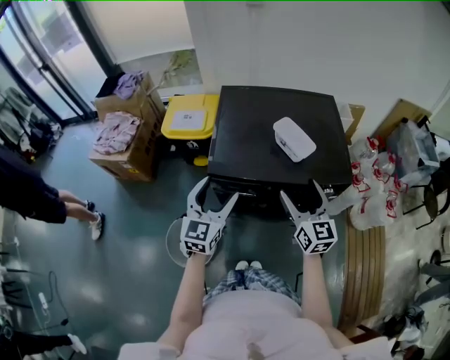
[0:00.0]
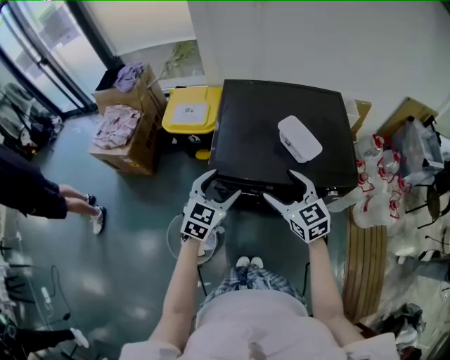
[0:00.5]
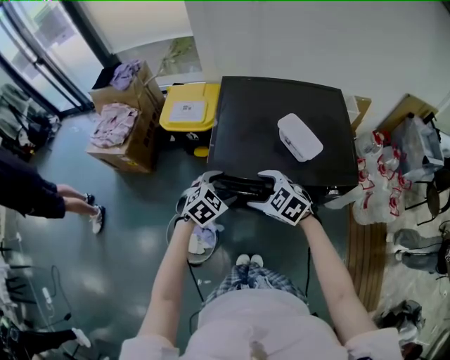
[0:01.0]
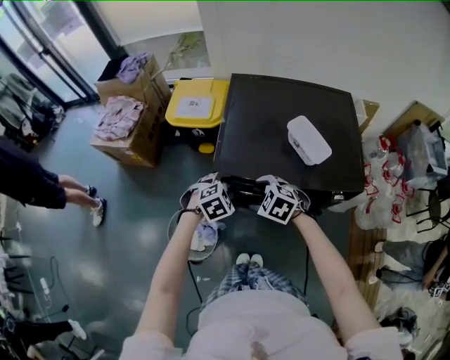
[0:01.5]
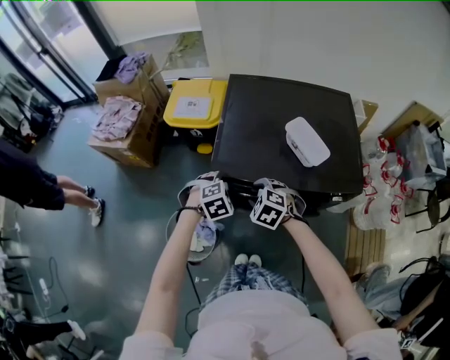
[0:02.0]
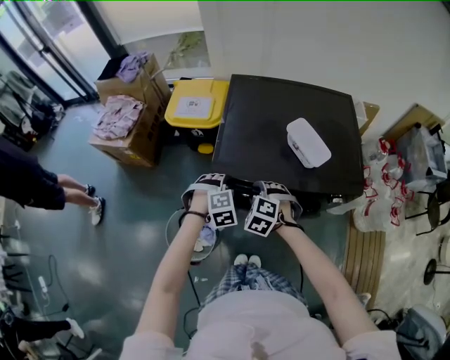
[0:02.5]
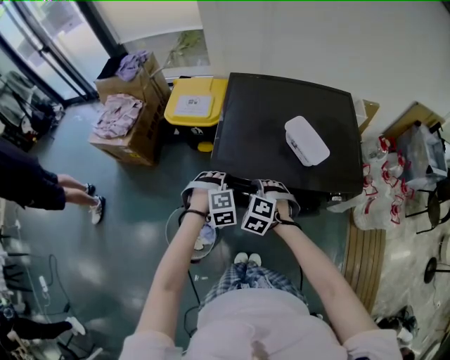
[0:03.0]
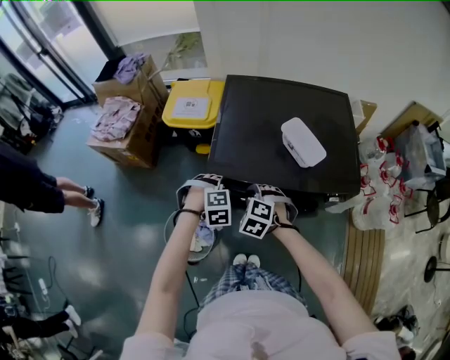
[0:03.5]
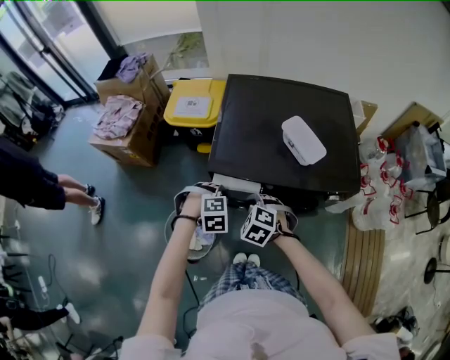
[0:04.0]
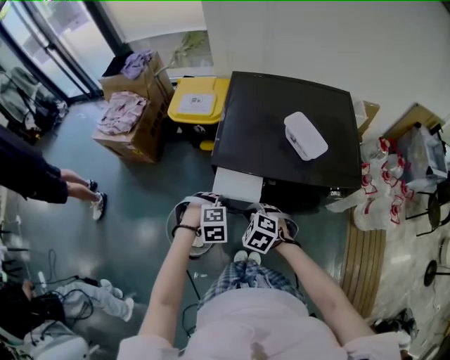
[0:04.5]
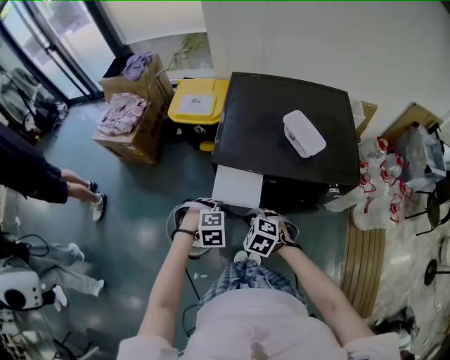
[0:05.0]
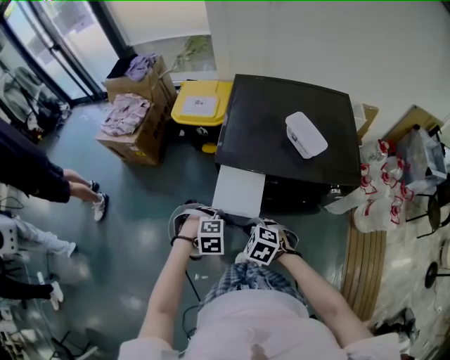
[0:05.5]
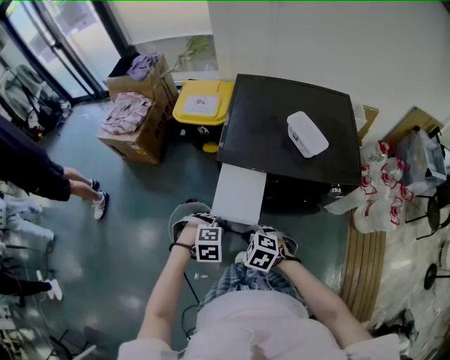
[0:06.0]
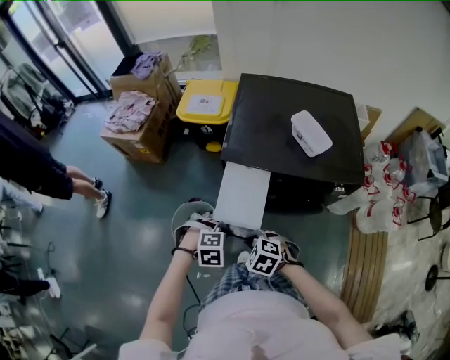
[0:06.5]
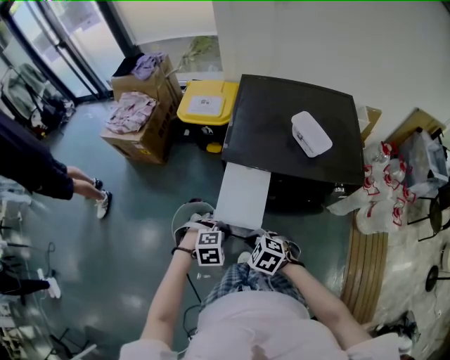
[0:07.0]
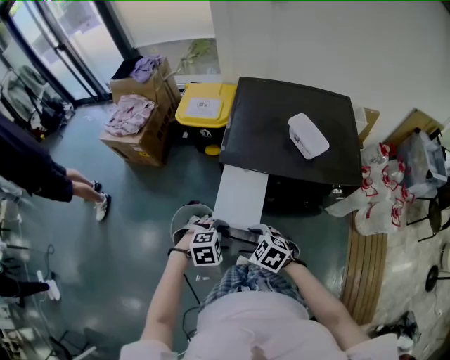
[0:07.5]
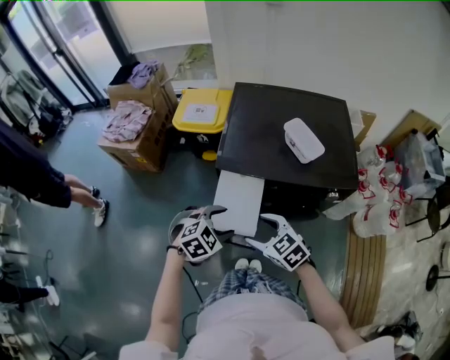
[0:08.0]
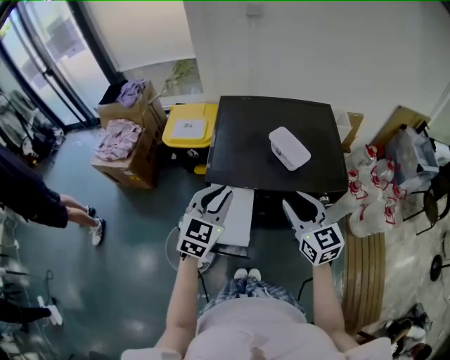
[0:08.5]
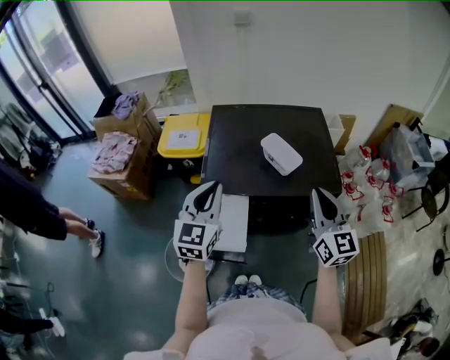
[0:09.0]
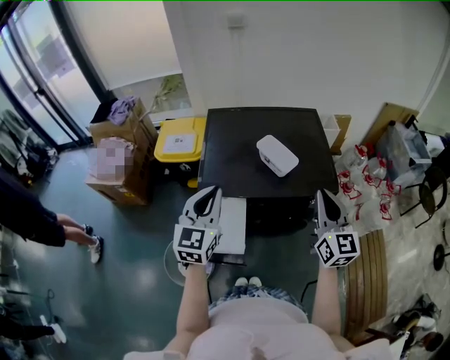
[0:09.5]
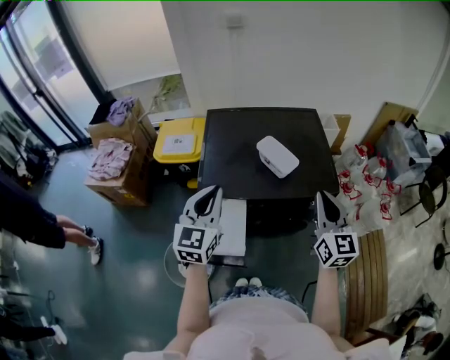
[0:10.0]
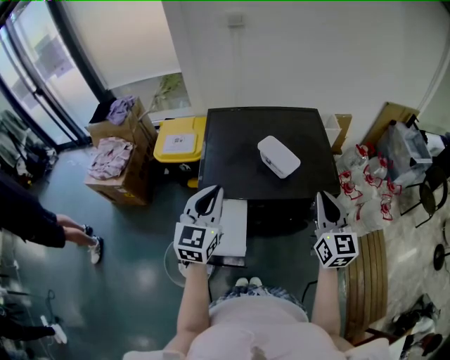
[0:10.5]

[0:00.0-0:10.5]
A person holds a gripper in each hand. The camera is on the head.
0:00.0 to 0:02.0: The left gripper heads downward, covering approximately 15 cm, angles its fingers downward, by roughly 60 degrees, and closes. The right gripper is displaced downward and to the left by approximately 20 cm, tips its fingers downward by about 60 degrees, and closes.
0:02.0 to 0:04.0: The left gripper travels backward by approximately 5 cm, and closes its fingers.
0:04.0 to 0:06.5: The left gripper moves some 20 cm, while the right gripper changes place by about 20 cm.
0:06.5 to 0:08.5: The left gripper goes approximately 25 cm upward, angles its fingers upward, by roughly 60 degrees, and opens and closes again. Meanwhile the right gripper ends up approximately 30 cm from where it was, tips its fingers upward by approximately 50 degrees, and opens and closes again.
0:08.5 to 0:10.5: The left gripper changes place by some 5 cm; the right gripper is displaced to the right by some 10 cm, and swivels about 20 degrees.

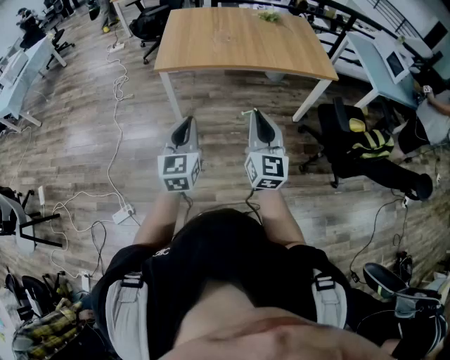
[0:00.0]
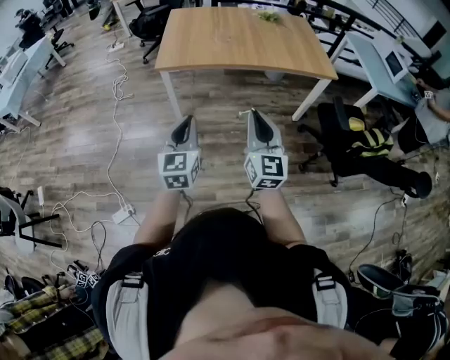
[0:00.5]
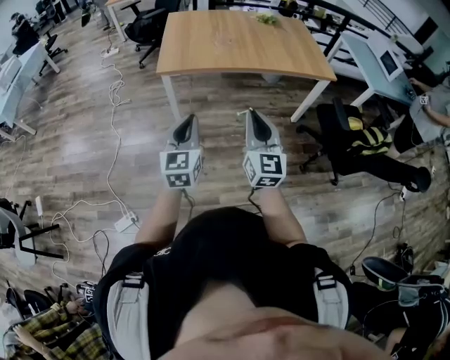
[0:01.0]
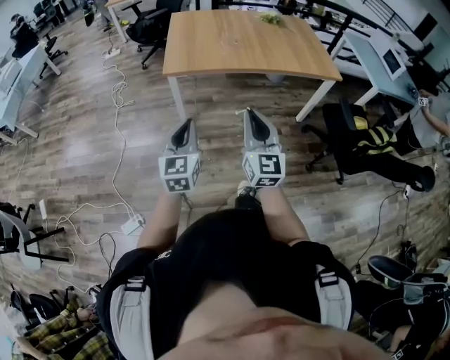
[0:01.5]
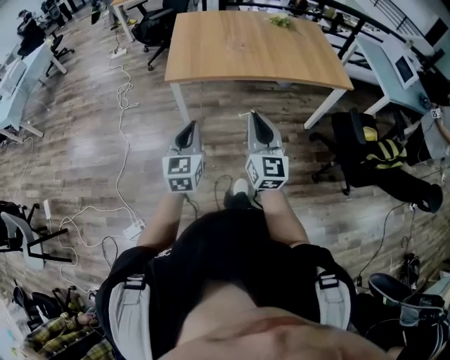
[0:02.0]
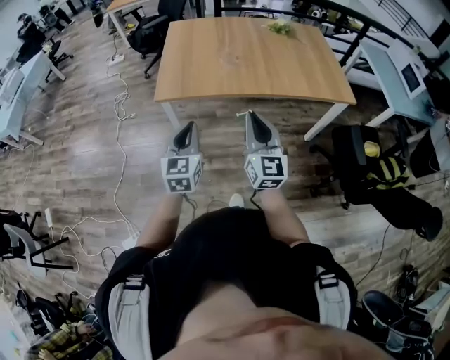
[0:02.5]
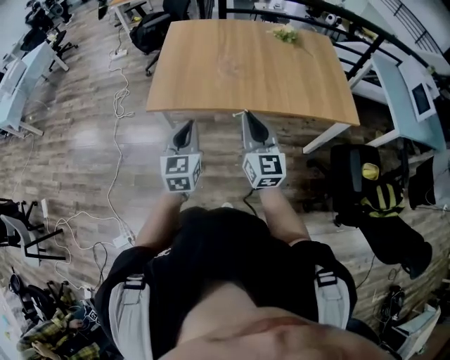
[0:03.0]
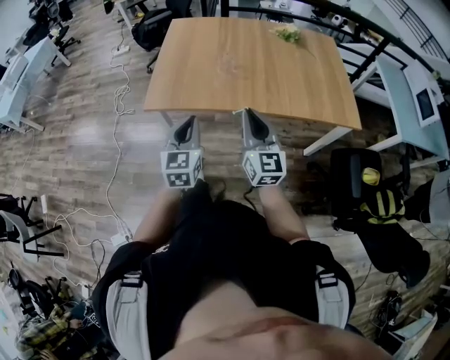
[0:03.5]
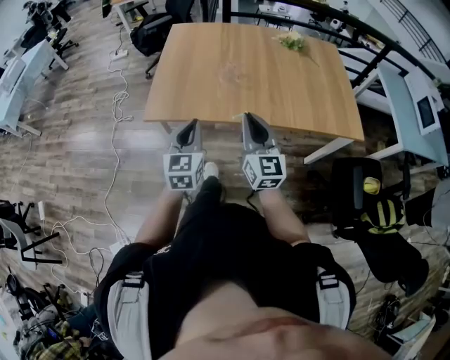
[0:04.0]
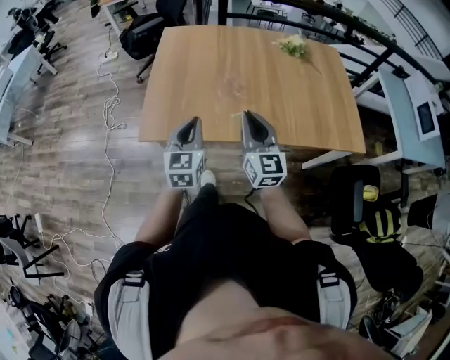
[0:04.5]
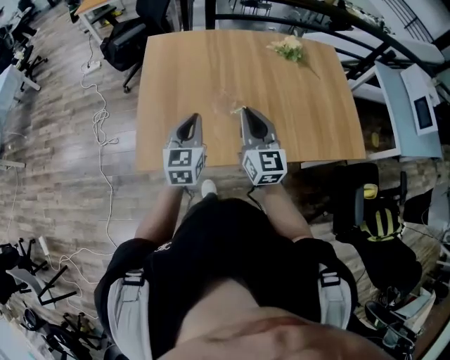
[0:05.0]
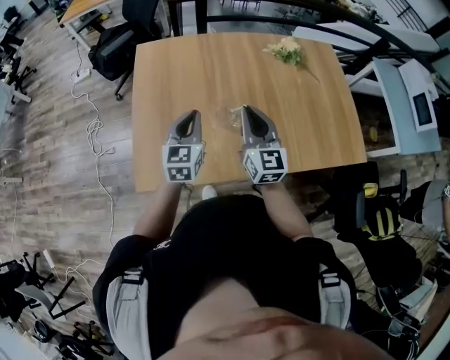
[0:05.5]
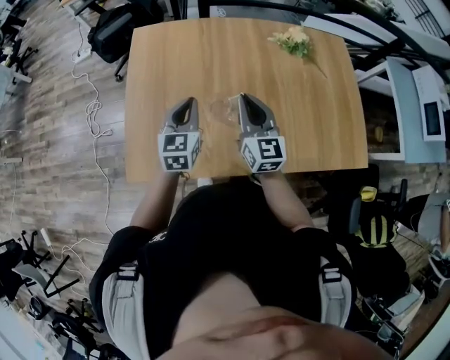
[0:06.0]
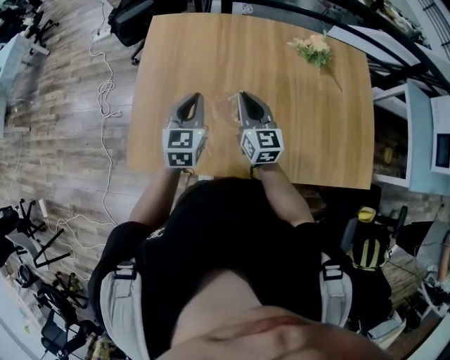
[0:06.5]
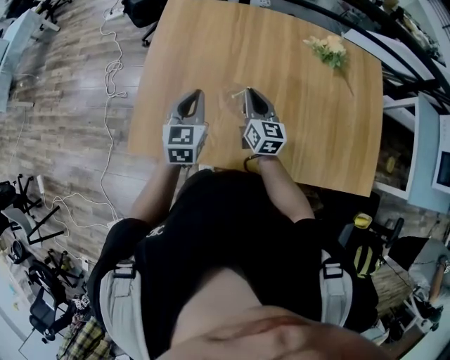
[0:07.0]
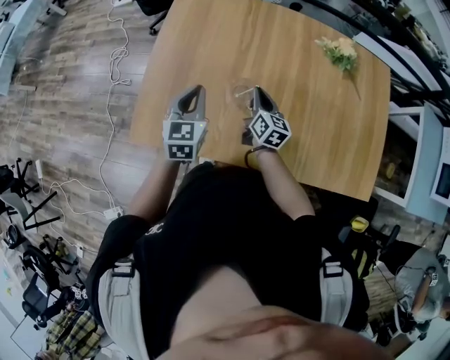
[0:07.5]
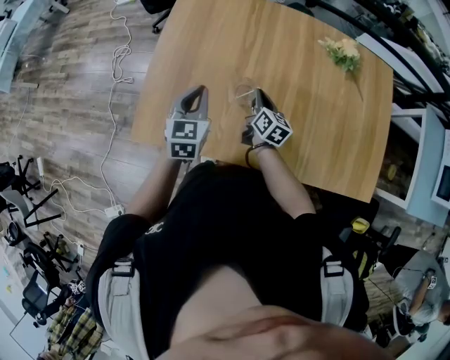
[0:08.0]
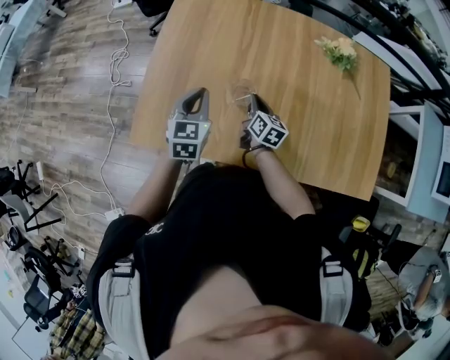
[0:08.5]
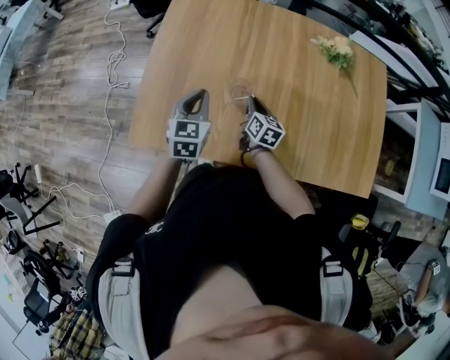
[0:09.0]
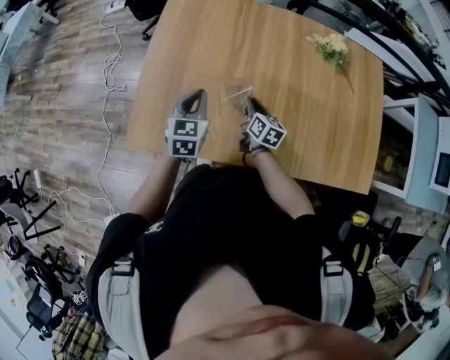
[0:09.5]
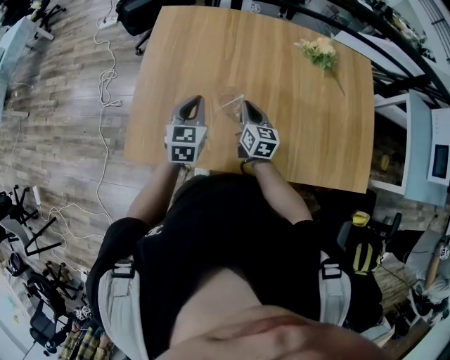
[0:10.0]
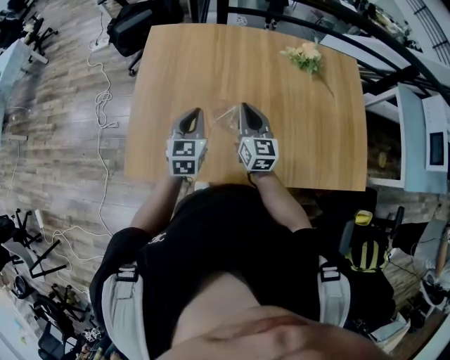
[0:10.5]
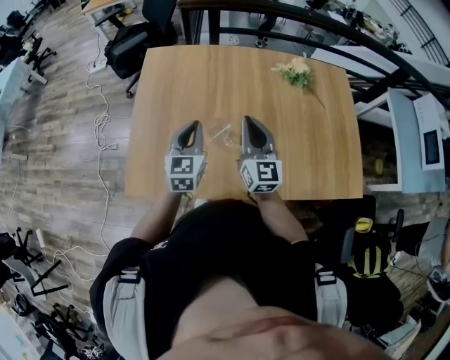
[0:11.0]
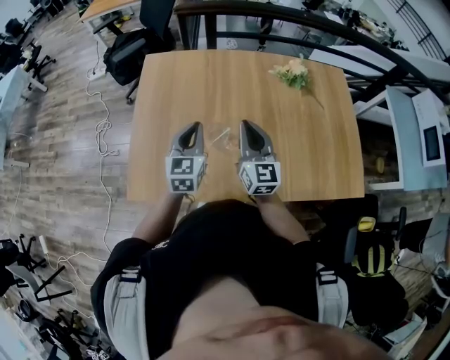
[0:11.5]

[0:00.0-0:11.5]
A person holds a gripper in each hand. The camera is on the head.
0:00.0 to 0:02.0: Both grippers move forward and to the left, approximately 15 cm.
0:02.0 to 0:04.0: The left gripper shifts some 35 cm forward and to the right; the right gripper moves forward, roughly 30 cm.
0:04.0 to 0:06.0: The two grippers go about 40 cm forward.
0:06.0 to 0:07.5: The right gripper goes approximately 15 cm downward, and turns by approximately 30 degrees, while the left gripper moves approximately 5 cm.
0:07.5 to 0:09.5: The right gripper heads downward, covering some 5 cm.
0:09.5 to 0:11.5: The right gripper heads upward, covering approximately 25 cm, and changes its angle by about 40 degrees; the left gripper is displaced upward by about 10 cm.

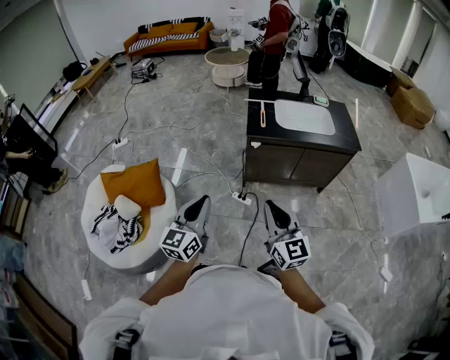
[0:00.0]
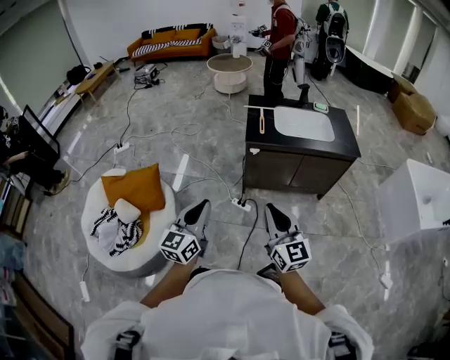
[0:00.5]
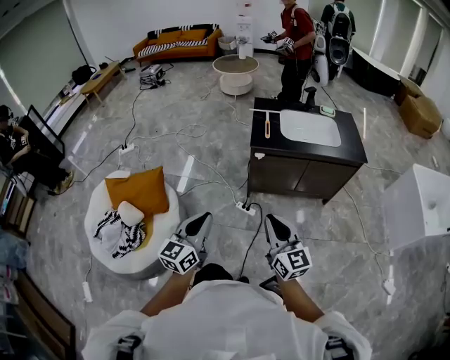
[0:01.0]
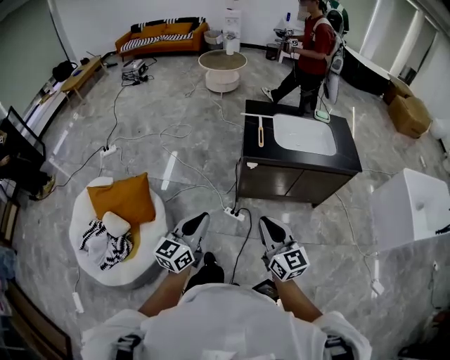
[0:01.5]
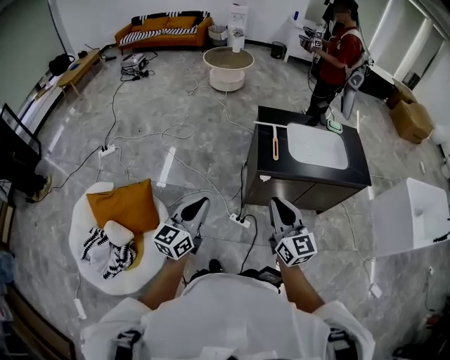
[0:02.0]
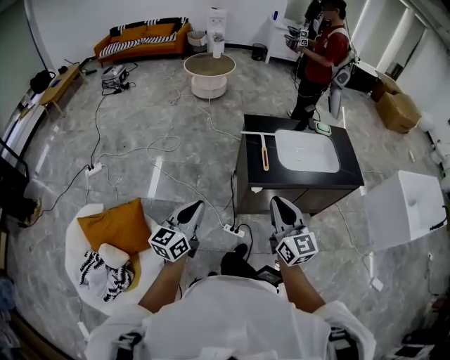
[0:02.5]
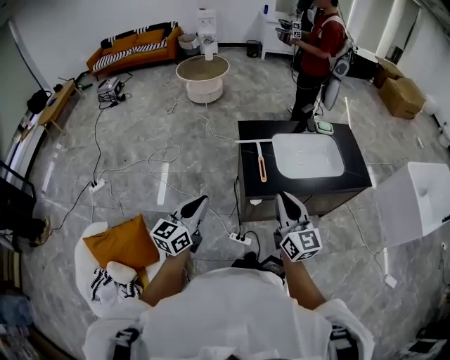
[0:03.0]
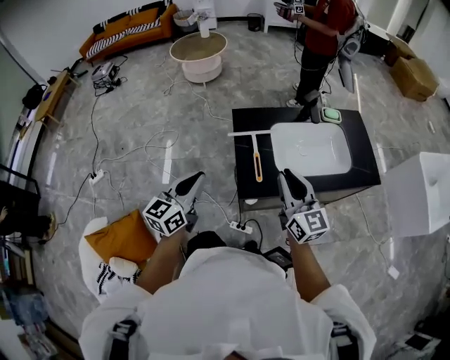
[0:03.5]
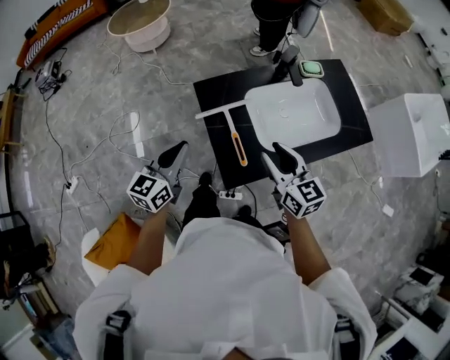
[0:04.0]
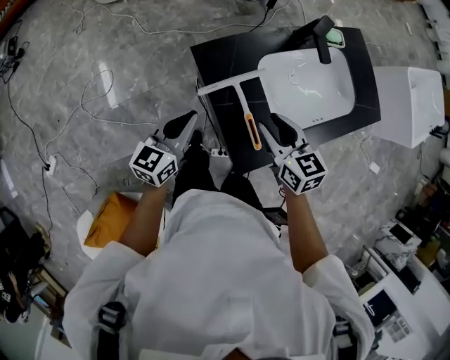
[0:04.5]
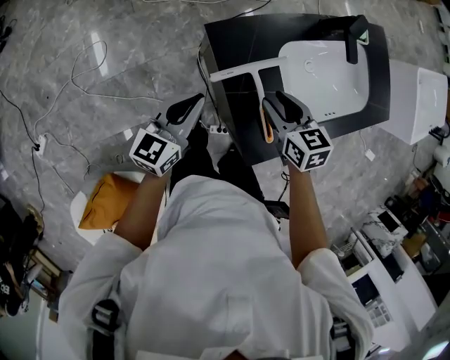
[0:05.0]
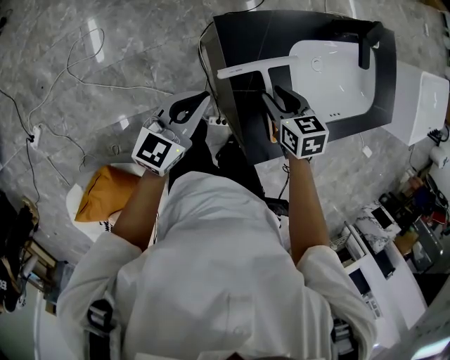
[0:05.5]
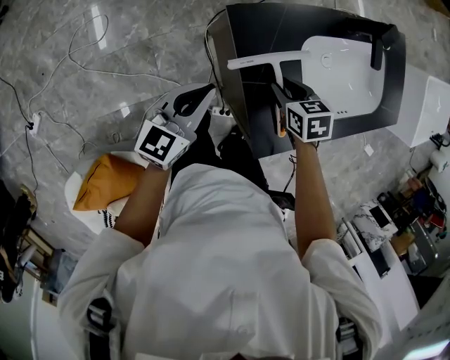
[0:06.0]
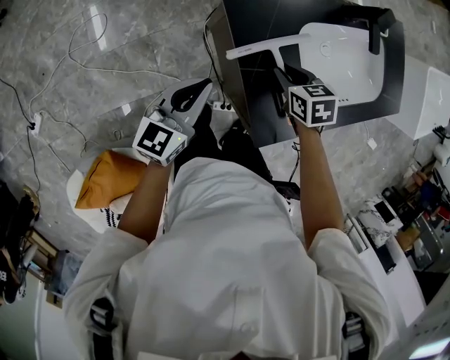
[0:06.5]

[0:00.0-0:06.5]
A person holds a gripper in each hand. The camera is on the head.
0:00.0 to 0:02.0: The two grippers go some 25 cm forward.
0:02.0 to 0:04.5: Both grippers are carried forward, approximately 50 cm. The right gripper tilts its fingers roughly 30 degrees downward, and opens up. The left gripper rotates approximately 40 degrees.
0:04.5 to 0:06.5: The right gripper moves downward, approximately 15 cm, and swivels roughly 30 degrees. The left gripper moves some 5 cm.
